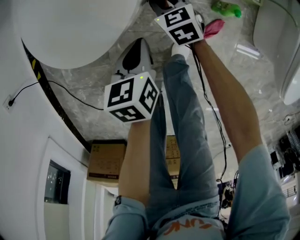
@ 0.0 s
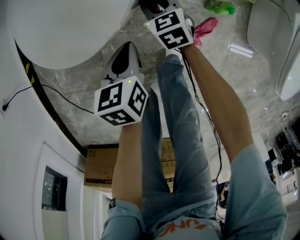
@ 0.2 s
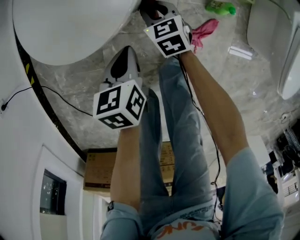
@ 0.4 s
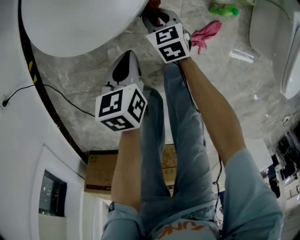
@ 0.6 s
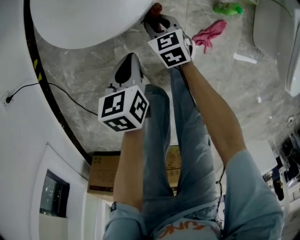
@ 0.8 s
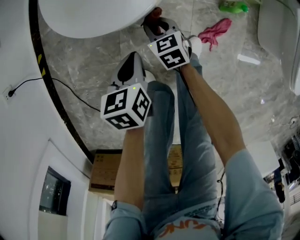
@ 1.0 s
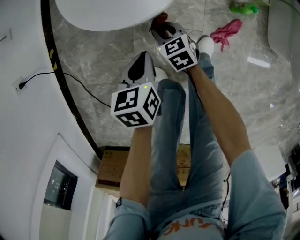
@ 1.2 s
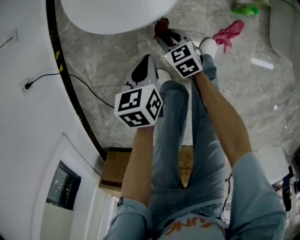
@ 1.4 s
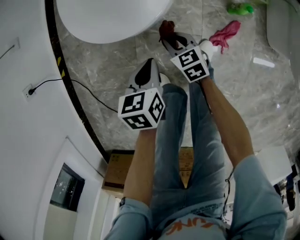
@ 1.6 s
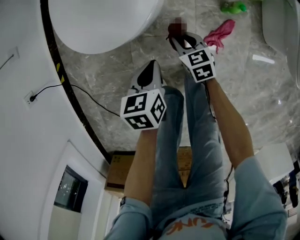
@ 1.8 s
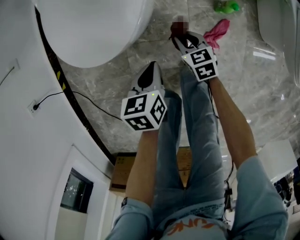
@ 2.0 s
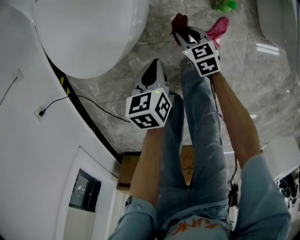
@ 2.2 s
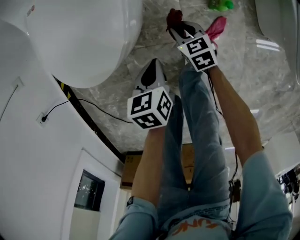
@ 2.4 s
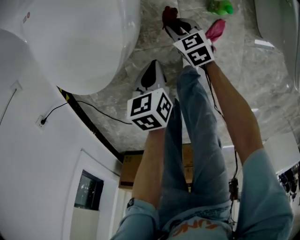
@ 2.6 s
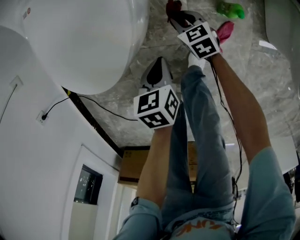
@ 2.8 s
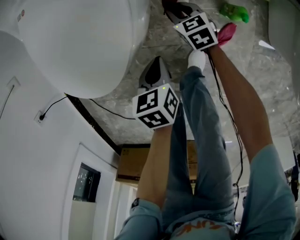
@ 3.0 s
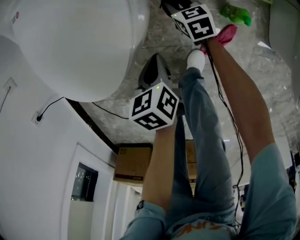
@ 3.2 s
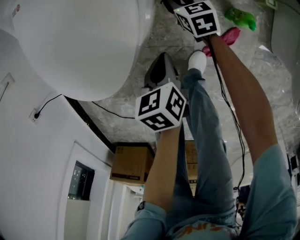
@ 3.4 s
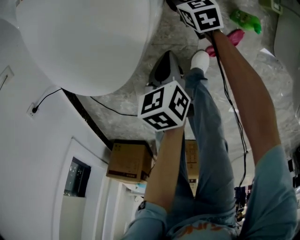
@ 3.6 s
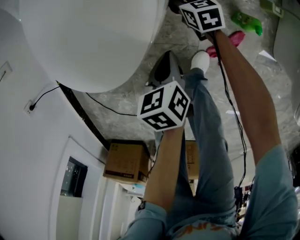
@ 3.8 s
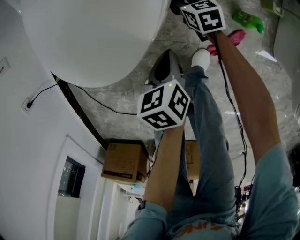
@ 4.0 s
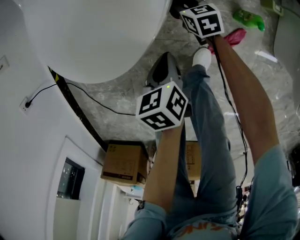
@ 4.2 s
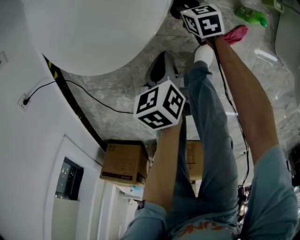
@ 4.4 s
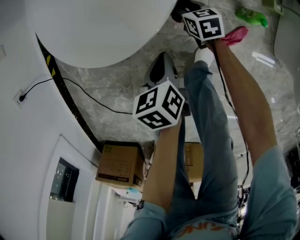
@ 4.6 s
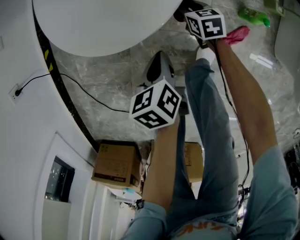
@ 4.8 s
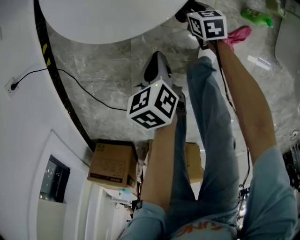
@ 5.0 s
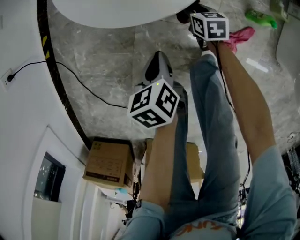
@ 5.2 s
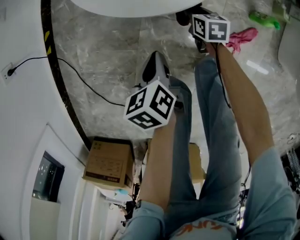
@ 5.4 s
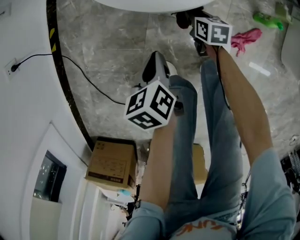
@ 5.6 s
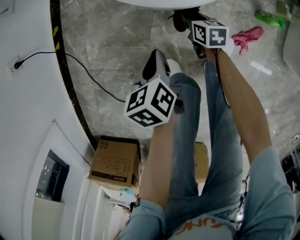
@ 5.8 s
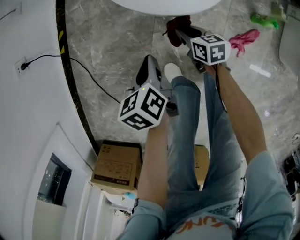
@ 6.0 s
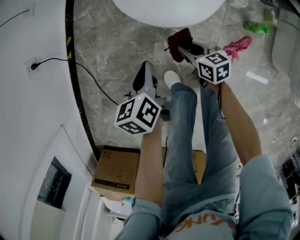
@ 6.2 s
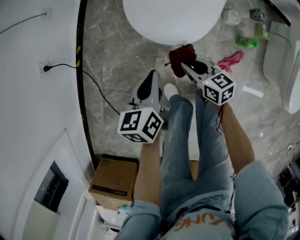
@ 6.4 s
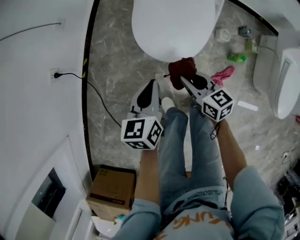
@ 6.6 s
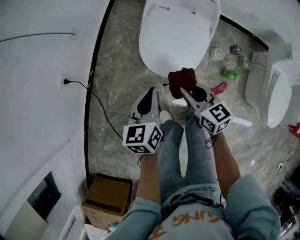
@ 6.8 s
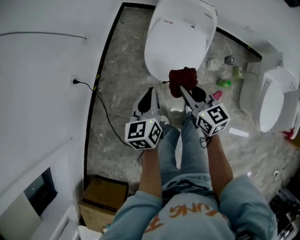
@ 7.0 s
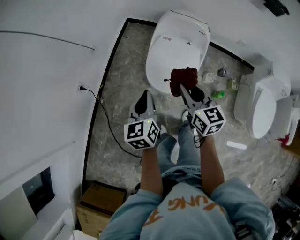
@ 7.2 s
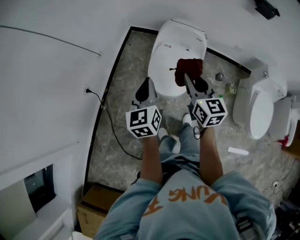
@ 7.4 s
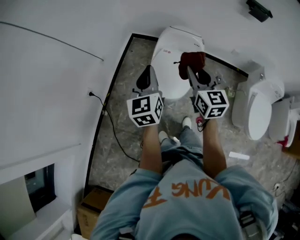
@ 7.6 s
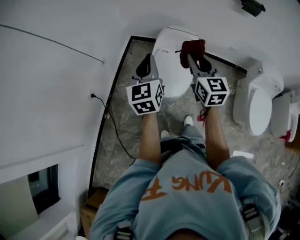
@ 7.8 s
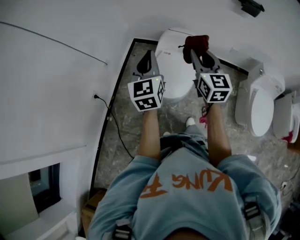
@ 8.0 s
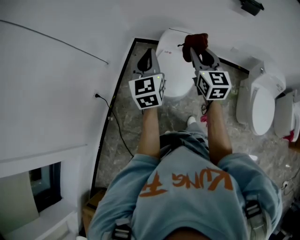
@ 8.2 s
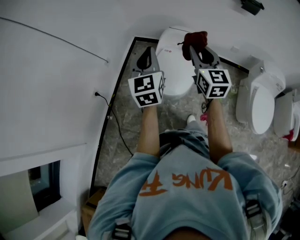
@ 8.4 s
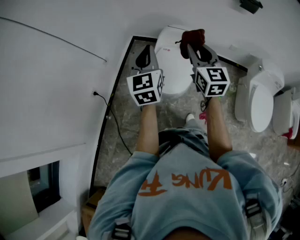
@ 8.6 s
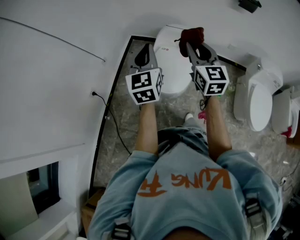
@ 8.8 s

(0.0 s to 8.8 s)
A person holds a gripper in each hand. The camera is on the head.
0.0 s - 1.4 s: The right gripper shifts approximately 20 cm backward and to the left. Meanwhile the left gripper travels to the left and backward by about 15 cm.
1.4 s - 3.0 s: The left gripper heads to the right, forward and downward, covering about 20 cm; the right gripper shifts about 30 cm to the right and forward.
3.0 s - 4.4 s: The two grippers go some 5 cm to the left.
4.4 s - 5.8 s: The right gripper moves to the left and backward, about 20 cm. Meanwhile the left gripper heads to the left, covering about 20 cm.
5.8 s - 7.4 s: Both grippers travel together upward, some 70 cm. The right gripper tips its fingers upward by some 40 degrees; the left gripper tilts its fingers some 40 degrees upward.
7.4 s - 8.8 s: Both grippers move upward, some 15 cm.

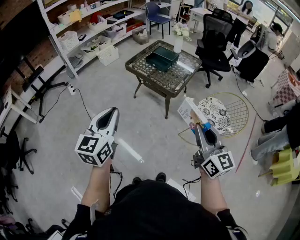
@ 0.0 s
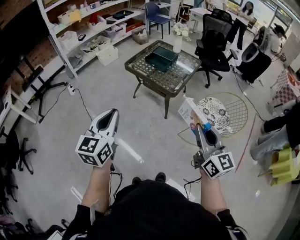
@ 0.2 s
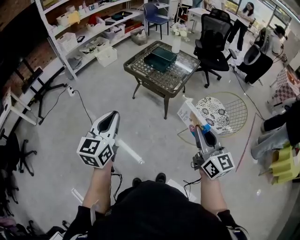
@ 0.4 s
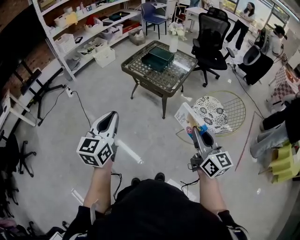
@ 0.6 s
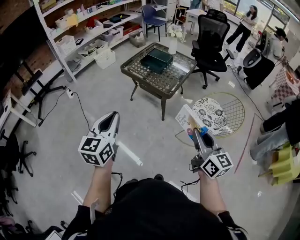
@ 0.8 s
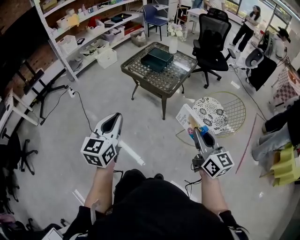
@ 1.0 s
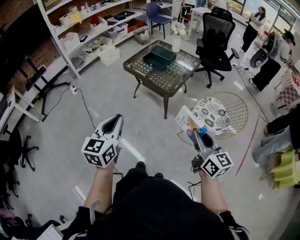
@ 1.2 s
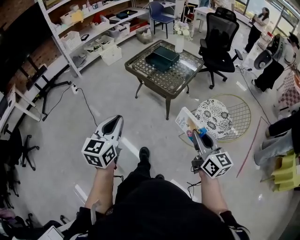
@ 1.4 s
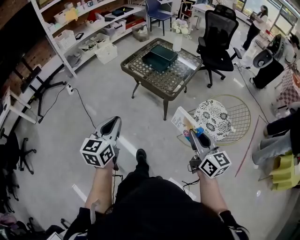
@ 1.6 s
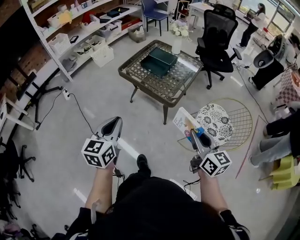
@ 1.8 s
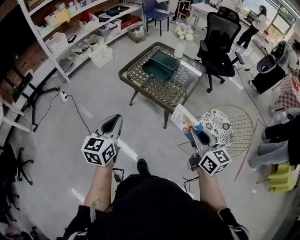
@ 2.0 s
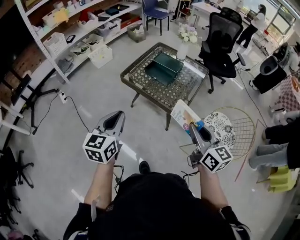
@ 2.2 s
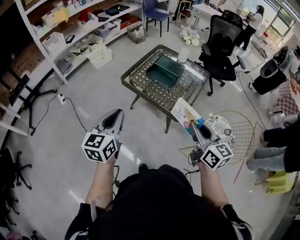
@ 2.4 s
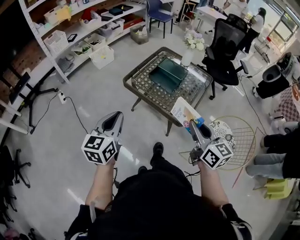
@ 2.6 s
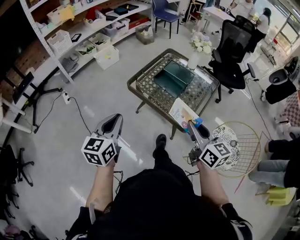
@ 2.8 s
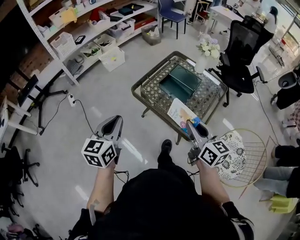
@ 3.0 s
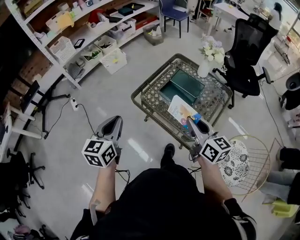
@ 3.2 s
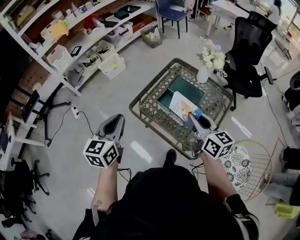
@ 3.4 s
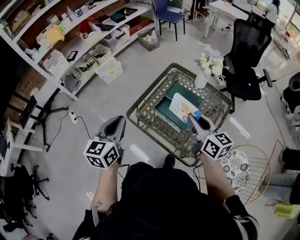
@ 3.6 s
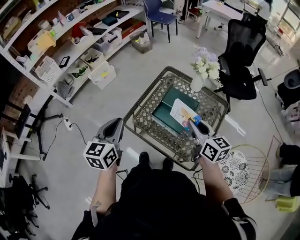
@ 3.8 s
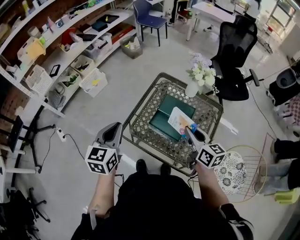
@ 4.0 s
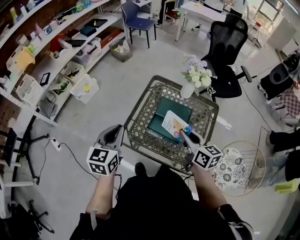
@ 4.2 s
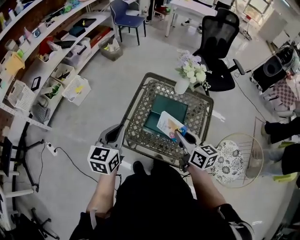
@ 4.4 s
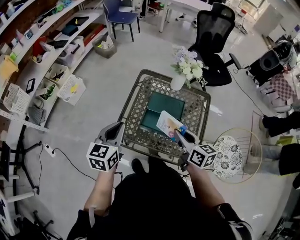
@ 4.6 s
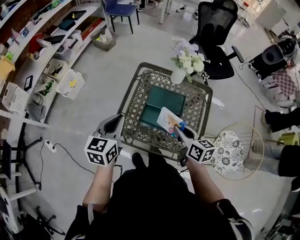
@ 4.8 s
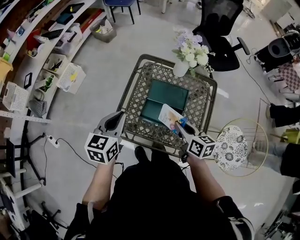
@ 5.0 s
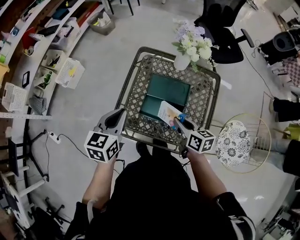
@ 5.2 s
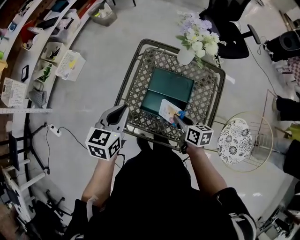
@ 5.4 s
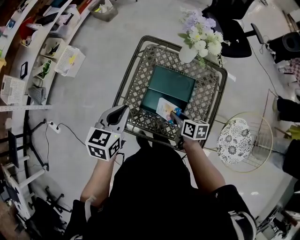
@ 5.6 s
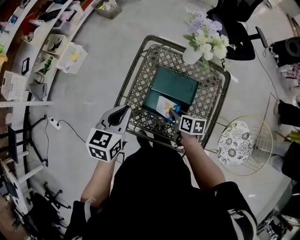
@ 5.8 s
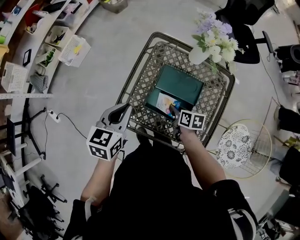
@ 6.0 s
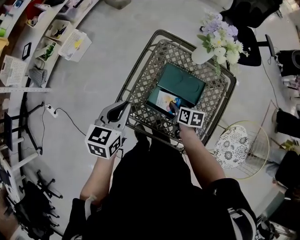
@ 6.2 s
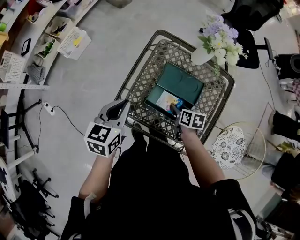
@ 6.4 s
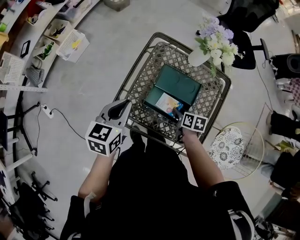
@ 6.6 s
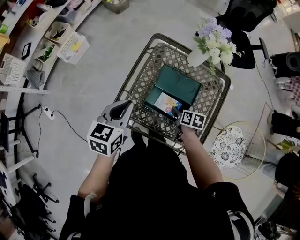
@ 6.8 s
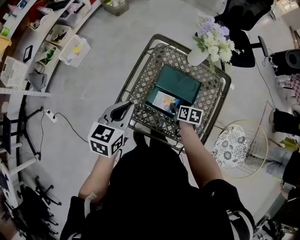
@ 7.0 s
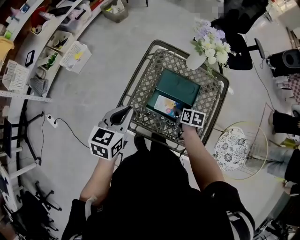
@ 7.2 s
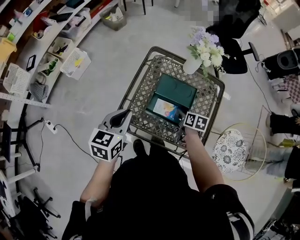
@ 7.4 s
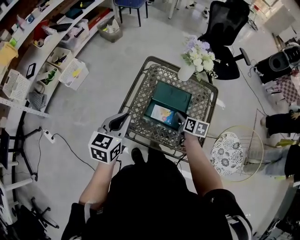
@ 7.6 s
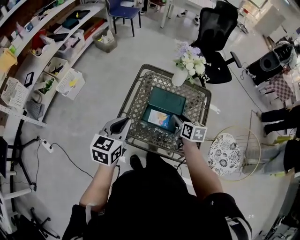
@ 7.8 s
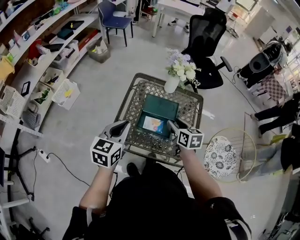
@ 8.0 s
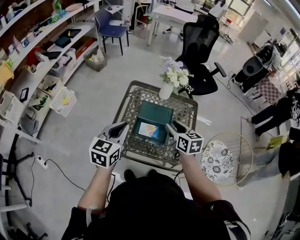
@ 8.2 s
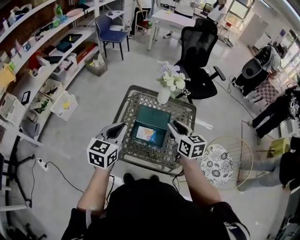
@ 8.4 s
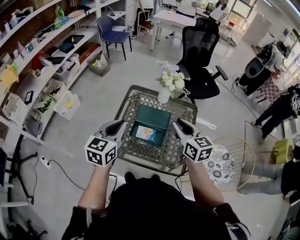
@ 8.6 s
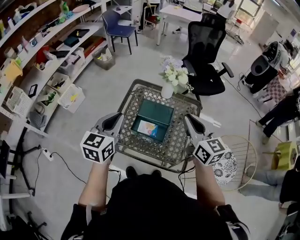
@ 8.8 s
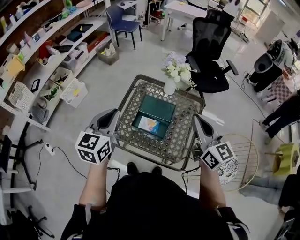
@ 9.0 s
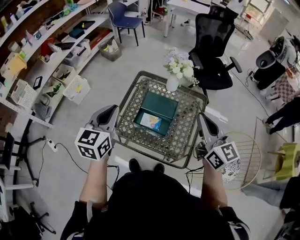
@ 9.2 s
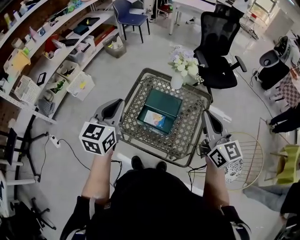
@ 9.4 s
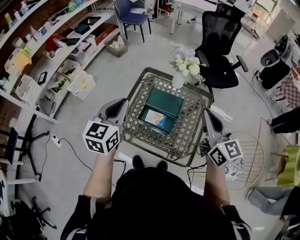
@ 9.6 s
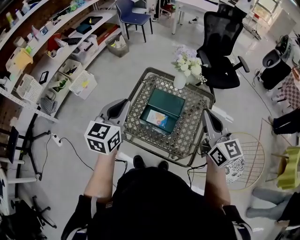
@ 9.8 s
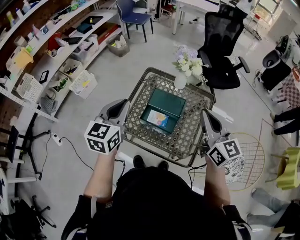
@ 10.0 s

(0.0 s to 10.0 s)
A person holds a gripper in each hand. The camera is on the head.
0.0 s - 1.4 s: Both grippers move downward and to the right, approximately 10 cm.
1.4 s - 2.8 s: The grippers both shift forward by some 35 cm.
2.8 s - 4.2 s: The two grippers go about 35 cm forward.
4.2 s - 5.8 s: The left gripper is displaced downward, forward and to the right by about 15 cm. Meanwhile the right gripper shifts roughly 25 cm downward, and swivels about 40 degrees.
5.8 s - 7.2 s: The right gripper opens up.
7.2 s - 8.6 s: The right gripper heads upward, covering roughly 35 cm, and tilts its fingers some 40 degrees upward, while the left gripper travels upward and to the right by roughly 15 cm.
8.6 s - 10.0 s: The right gripper goes approximately 5 cm upward, and closes its fingers.

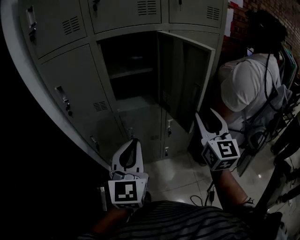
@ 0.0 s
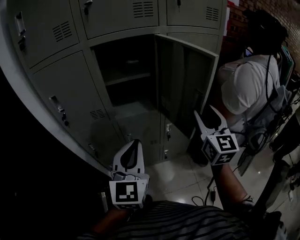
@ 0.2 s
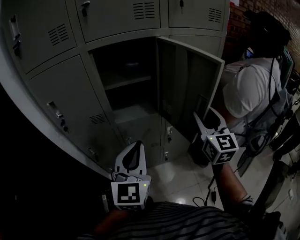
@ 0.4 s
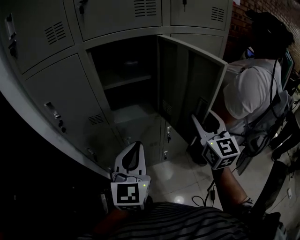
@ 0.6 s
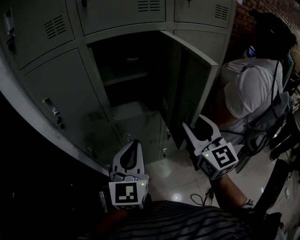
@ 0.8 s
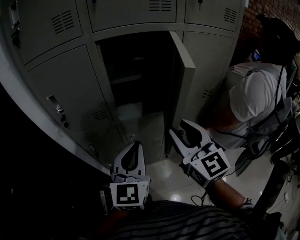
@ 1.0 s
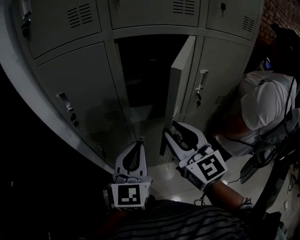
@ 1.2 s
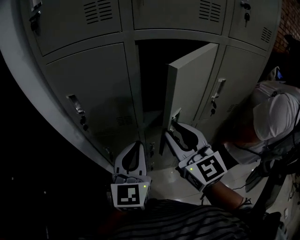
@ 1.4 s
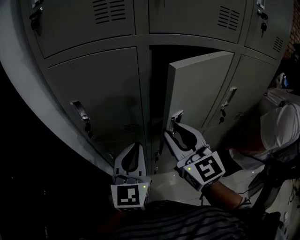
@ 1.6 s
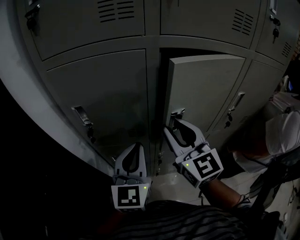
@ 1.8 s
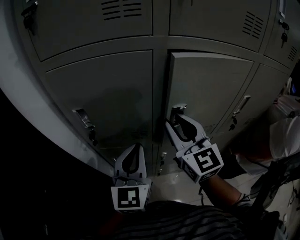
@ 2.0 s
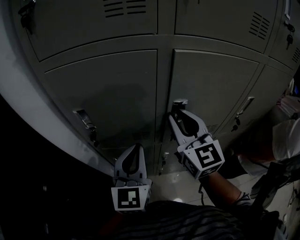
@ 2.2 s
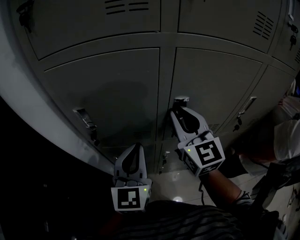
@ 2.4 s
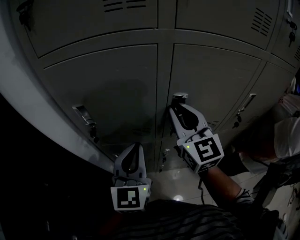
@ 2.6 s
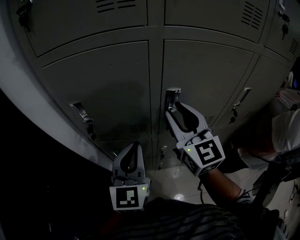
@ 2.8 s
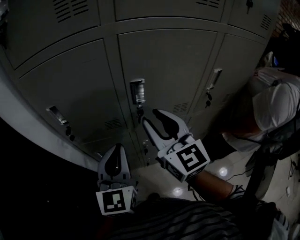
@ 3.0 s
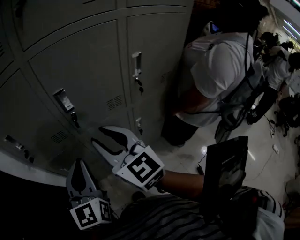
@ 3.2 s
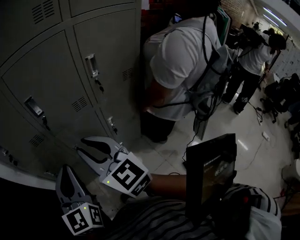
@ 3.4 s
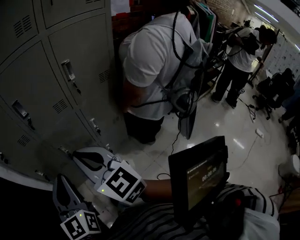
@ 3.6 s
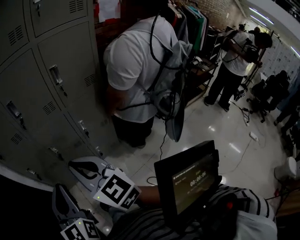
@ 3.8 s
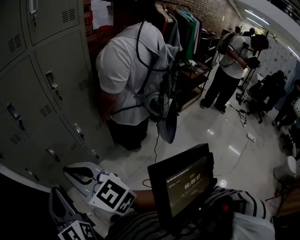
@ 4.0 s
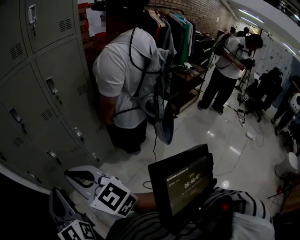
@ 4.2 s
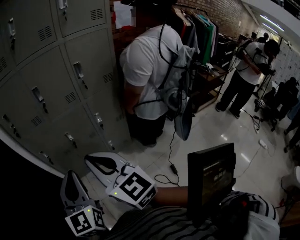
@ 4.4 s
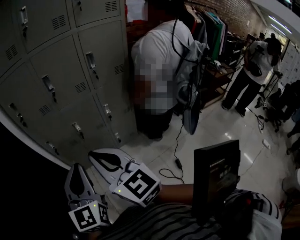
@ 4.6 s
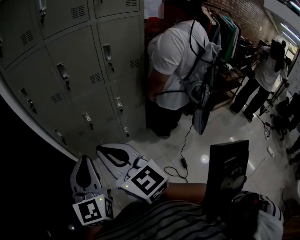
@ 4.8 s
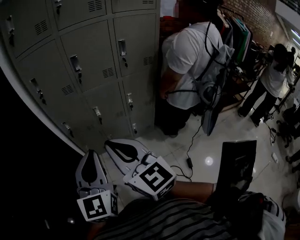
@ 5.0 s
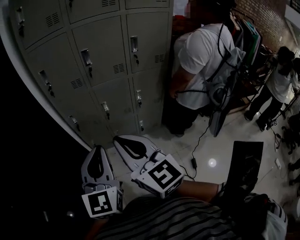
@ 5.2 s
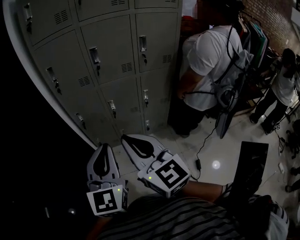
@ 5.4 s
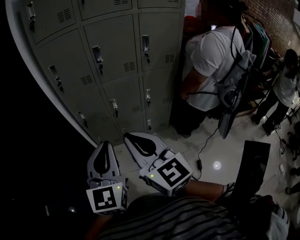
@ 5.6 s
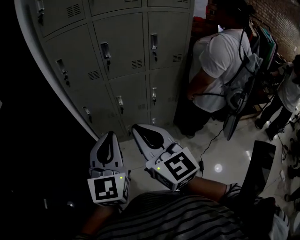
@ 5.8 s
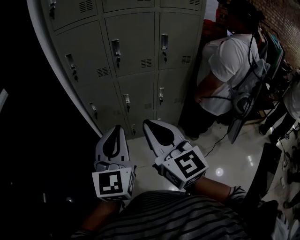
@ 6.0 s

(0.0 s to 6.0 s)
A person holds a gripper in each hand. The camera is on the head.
0.0 s - 1.6 s: The left gripper shifts about 25 cm forward and to the left. The right gripper heads to the left and forward, covering roughly 35 cm, and turns by roughly 30 degrees.
1.6 s - 3.0 s: The right gripper travels forward and back again, roughly 10 cm each way.
3.0 s - 4.4 s: The pair of grippers is taken backward, about 40 cm. The right gripper closes up.
4.4 s - 6.0 s: The grippers both shift to the left by some 10 cm.
